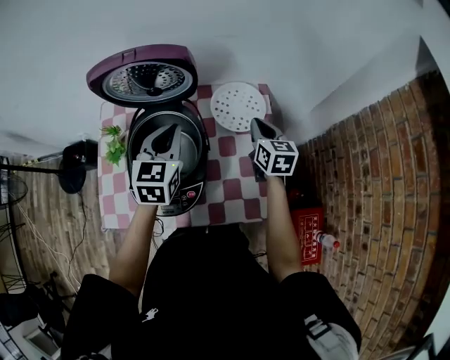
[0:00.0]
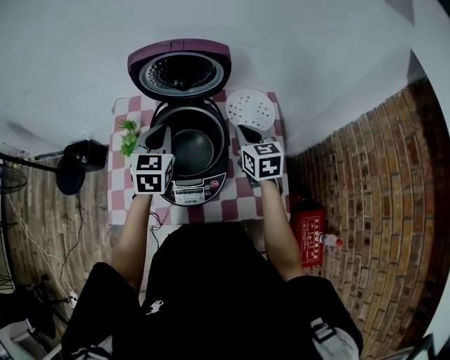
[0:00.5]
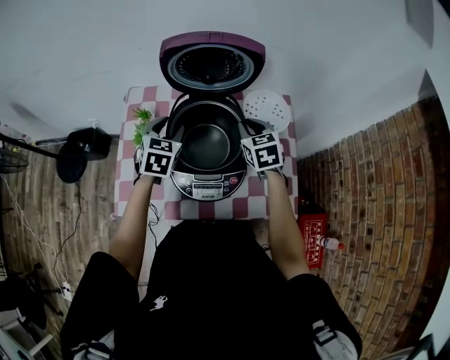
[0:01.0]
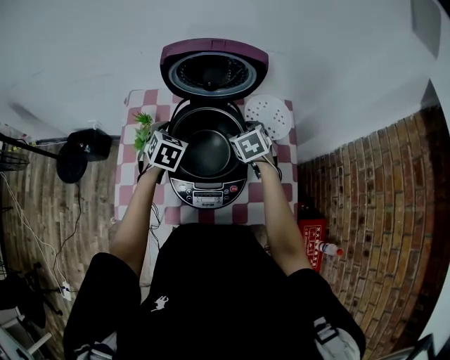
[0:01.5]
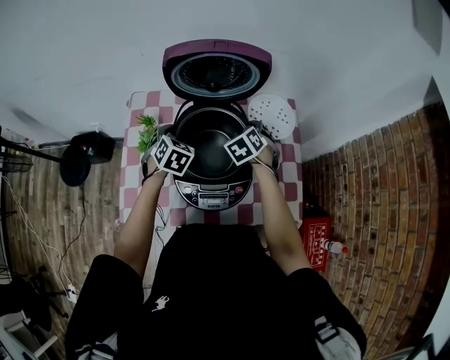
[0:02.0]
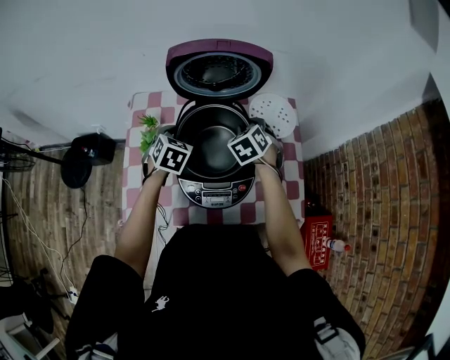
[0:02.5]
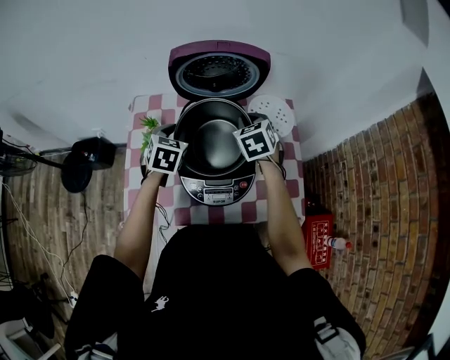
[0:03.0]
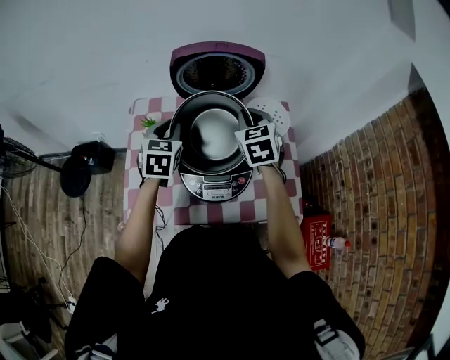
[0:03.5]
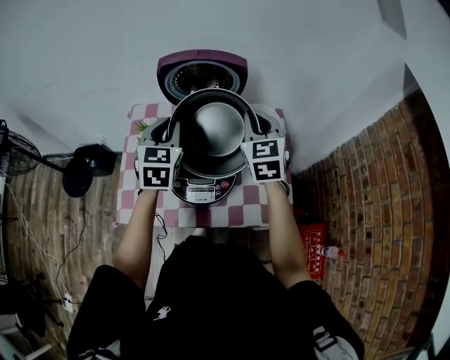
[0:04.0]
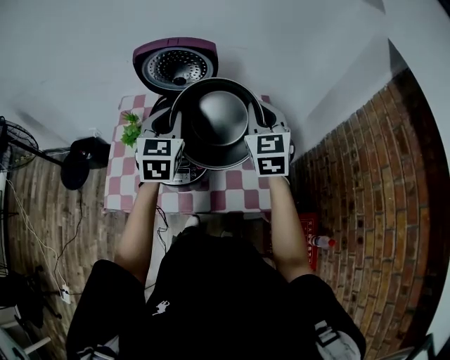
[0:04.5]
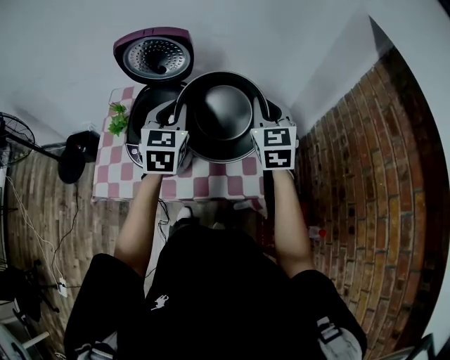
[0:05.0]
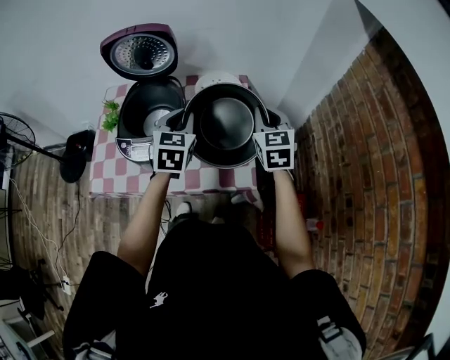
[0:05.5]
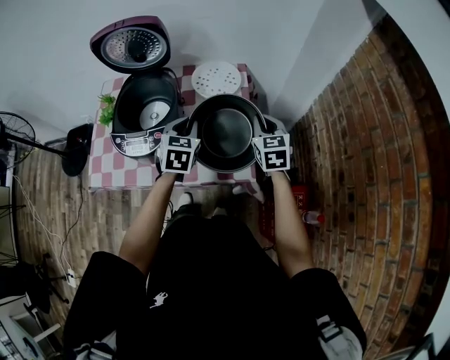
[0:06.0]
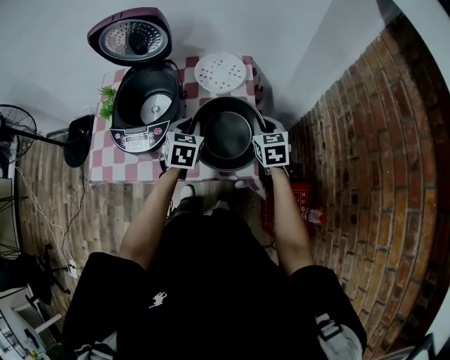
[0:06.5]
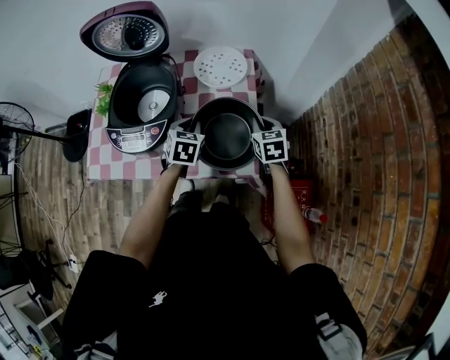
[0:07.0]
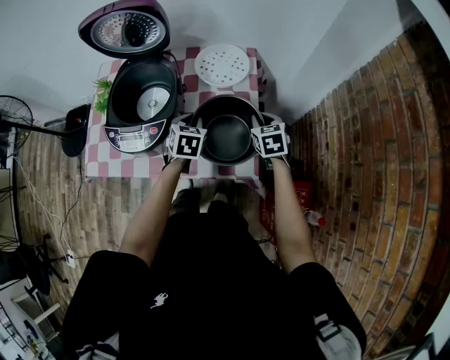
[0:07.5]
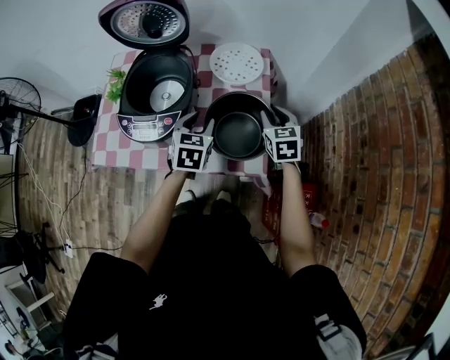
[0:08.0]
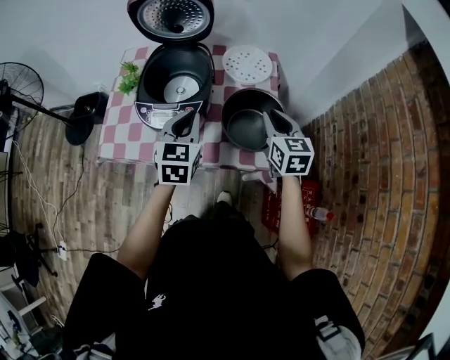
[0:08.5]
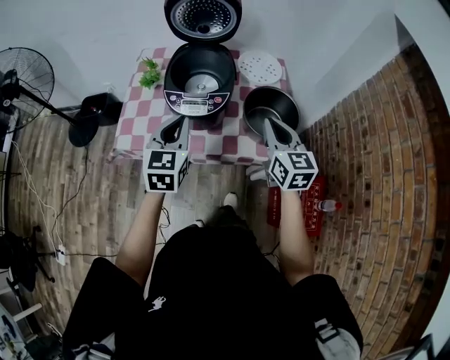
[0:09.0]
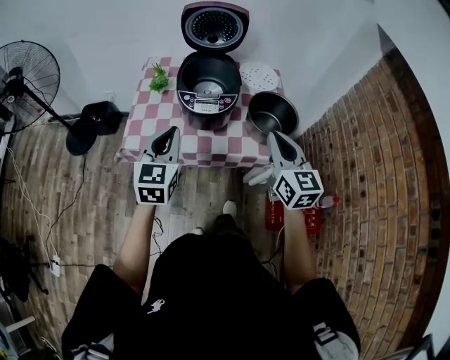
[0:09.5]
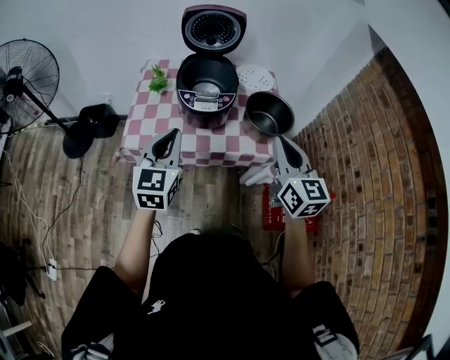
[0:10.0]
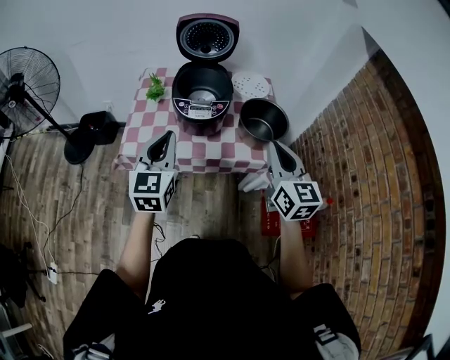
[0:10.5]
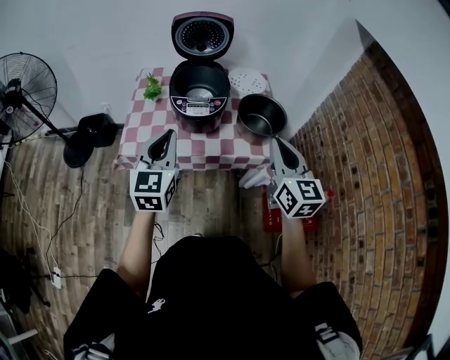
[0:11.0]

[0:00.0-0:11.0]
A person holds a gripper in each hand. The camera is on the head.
0:00.0 to 0:02.0: The right gripper moves to the left, some 20 cm, twists approximately 40 degrees counterclockwise, seen from behind, and opens, while the left gripper is displaced to the left and downward by roughly 20 cm, changes its angle by about 30 degrees, and opens up.
0:02.0 to 0:03.5: Both grippers travel together upward, some 15 cm. The right gripper turns by approximately 30 degrees, and closes its fingers, while the left gripper changes its angle by roughly 30 degrees, and closes its fingers.
0:03.5 to 0:05.5: The left gripper goes approximately 30 cm to the right; the right gripper is displaced to the right and backward by some 30 cm.
0:05.5 to 0:07.5: Both grippers travel together downward, approximately 20 cm. The right gripper swivels about 30 degrees; the left gripper rotates some 20 degrees.
0:07.5 to 0:09.0: The left gripper is displaced to the left, upward and backward by approximately 35 cm, rotates approximately 30 degrees, and opens, then closes once more, while the right gripper shifts roughly 30 cm upward, to the left and backward, and turns by approximately 30 degrees.
0:09.0 to 0:11.0: The left gripper is displaced backward, upward and to the left by approximately 15 cm; the right gripper shifts roughly 20 cm backward and upward.

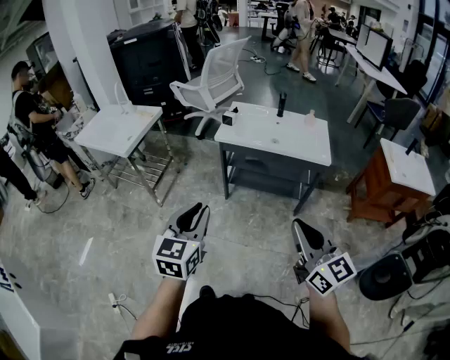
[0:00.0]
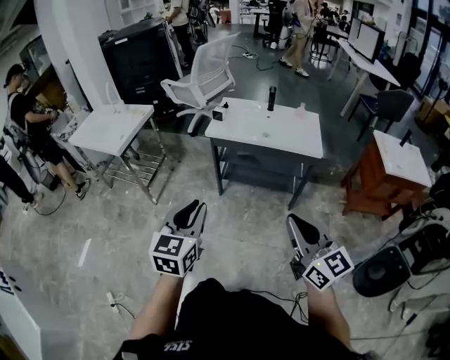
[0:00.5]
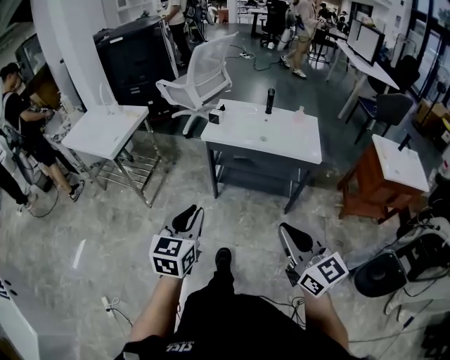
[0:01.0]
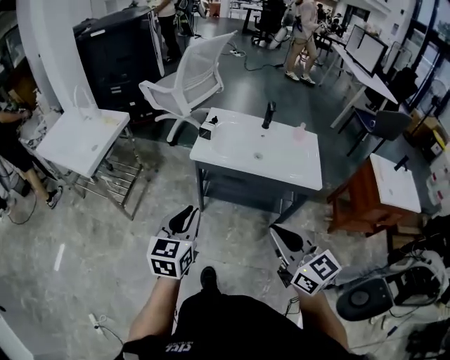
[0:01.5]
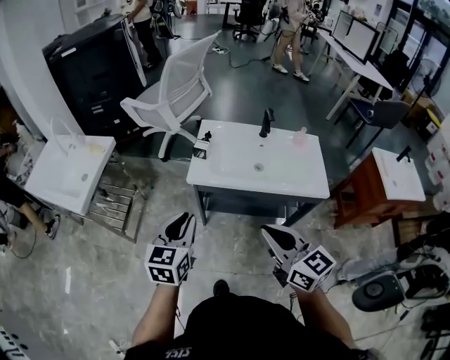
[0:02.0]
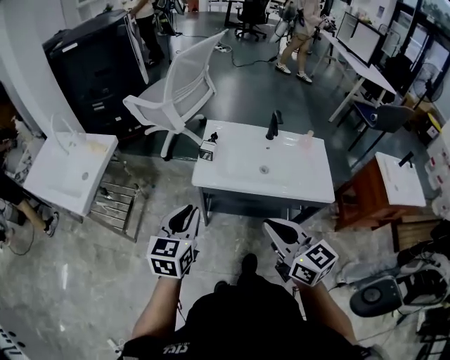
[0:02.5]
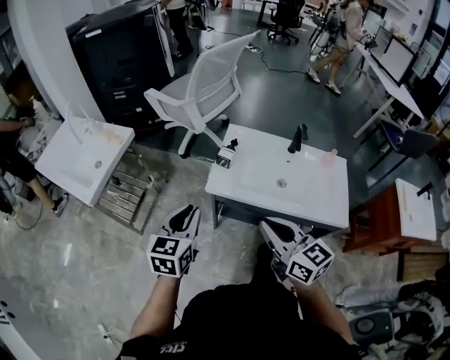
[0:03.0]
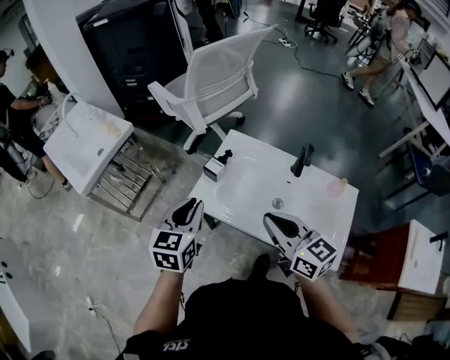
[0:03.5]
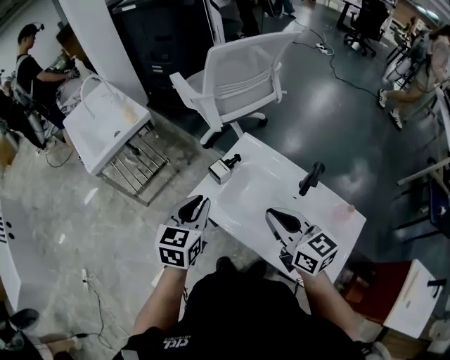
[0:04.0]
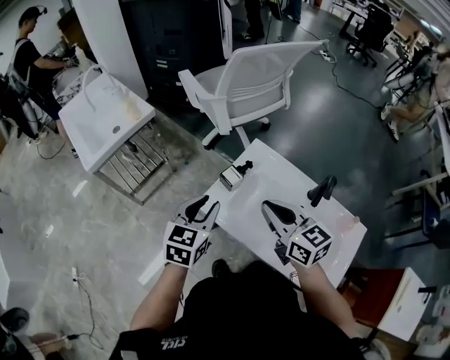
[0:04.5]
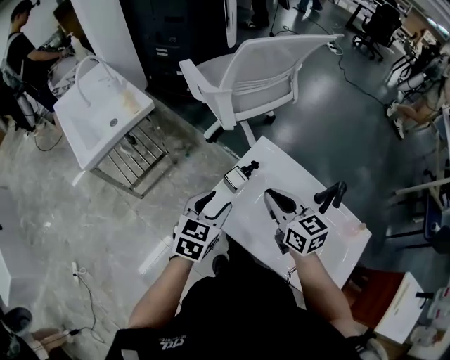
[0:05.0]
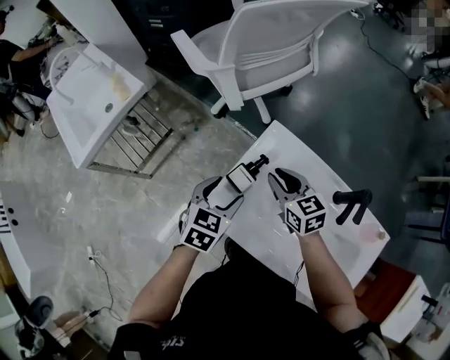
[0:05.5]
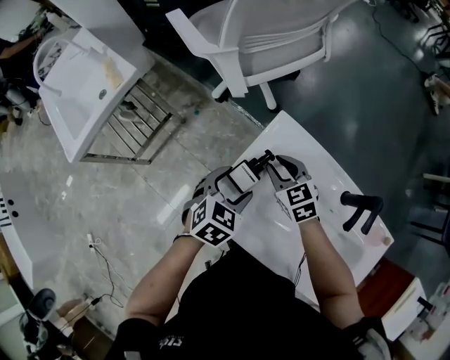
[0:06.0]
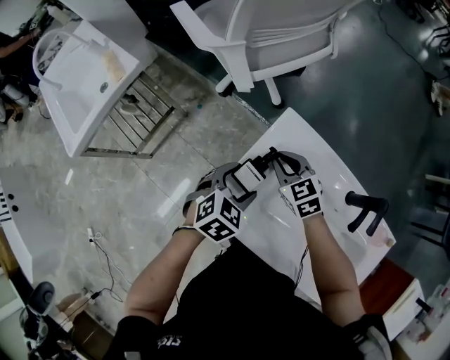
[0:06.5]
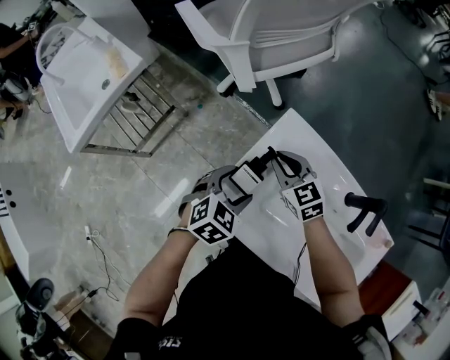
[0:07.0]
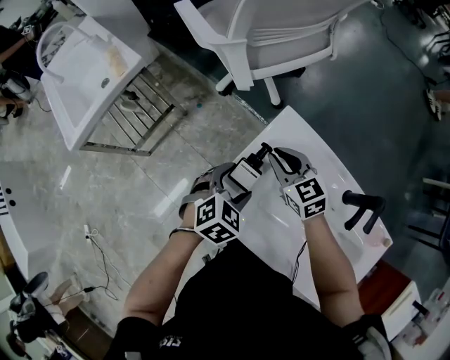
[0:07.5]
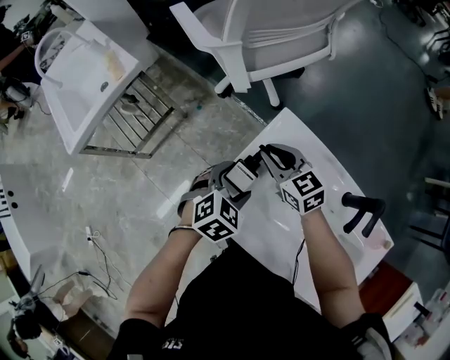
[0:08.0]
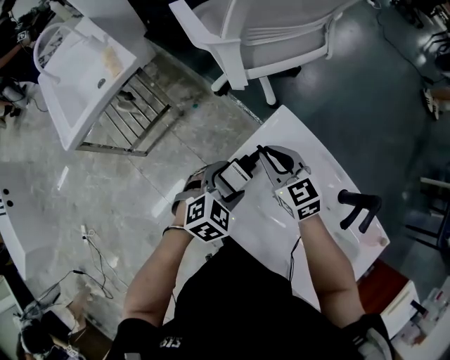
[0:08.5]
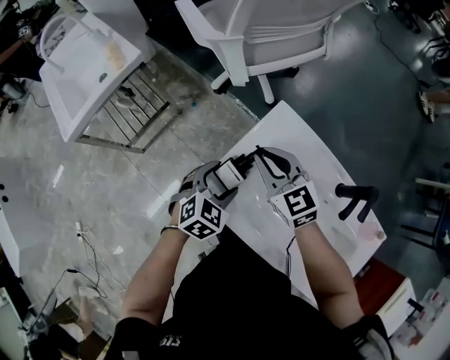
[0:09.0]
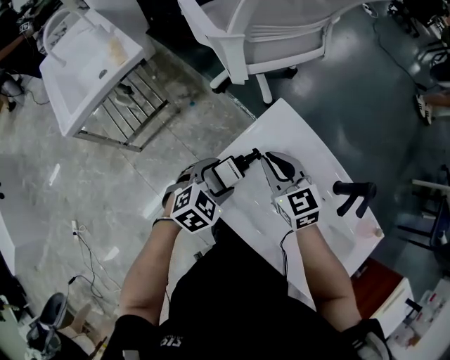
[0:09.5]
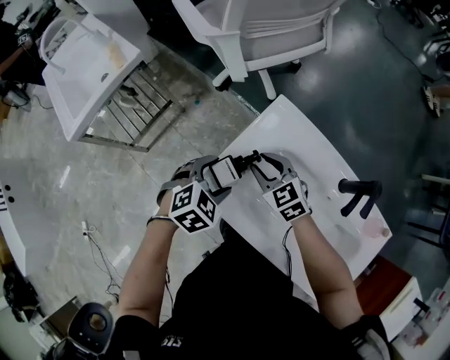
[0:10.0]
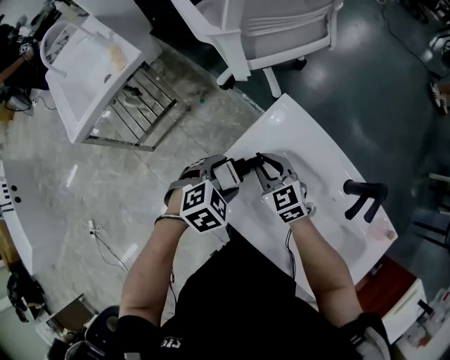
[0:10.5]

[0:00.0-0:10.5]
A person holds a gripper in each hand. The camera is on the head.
0:00.0 to 0:02.0: The two grippers go about 35 cm forward.
0:02.0 to 0:04.0: The left gripper moves about 30 cm, and swivels approximately 30 degrees. The right gripper changes place by some 40 cm, and swivels approximately 30 degrees.
0:04.0 to 0:06.5: The right gripper travels forward and downward by about 40 cm, and swivels approximately 30 degrees; the left gripper goes about 30 cm downward and forward, rotates roughly 40 degrees, and opens up.
0:06.5 to 0:08.5: The right gripper is displaced upward by some 5 cm.
0:08.5 to 0:10.5: The right gripper moves backward and downward, roughly 5 cm.

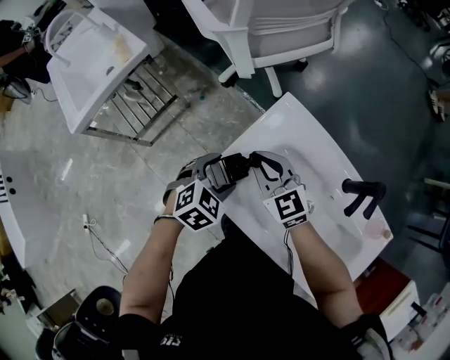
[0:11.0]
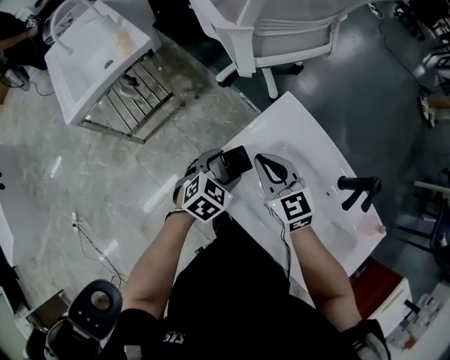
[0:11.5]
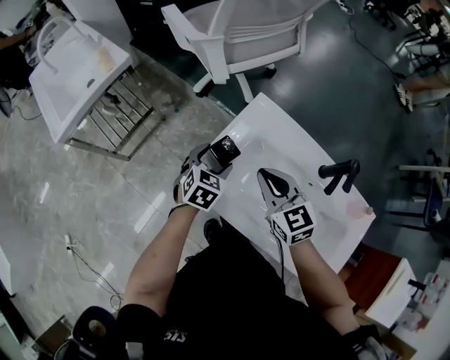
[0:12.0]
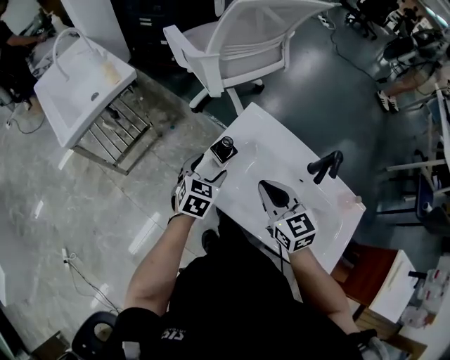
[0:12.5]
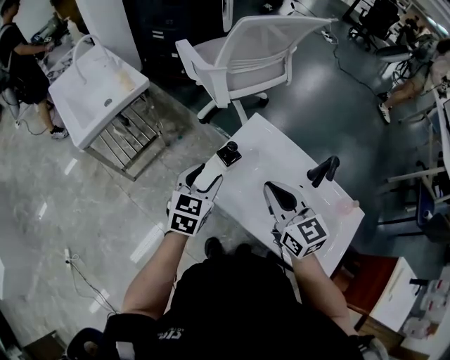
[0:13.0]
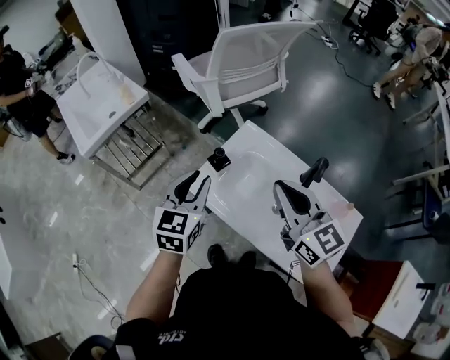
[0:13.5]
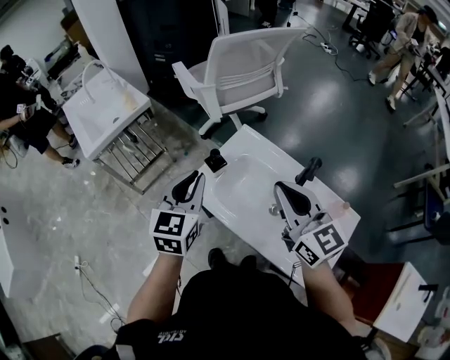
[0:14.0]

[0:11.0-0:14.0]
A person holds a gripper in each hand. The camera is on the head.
0:11.0 to 0:12.5: The right gripper heads backward, upward and to the right, covering about 15 cm. Meanwhile the left gripper changes its angle by approximately 30 degrees.
0:12.5 to 0:14.0: The right gripper travels upward, to the right and backward by approximately 20 cm, and changes its angle by approximately 20 degrees; the left gripper goes some 25 cm upward and backward, swivels roughly 20 degrees, and closes its fingers.

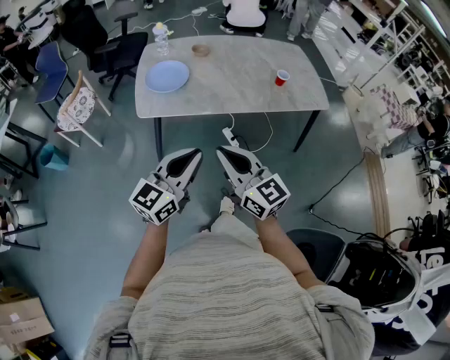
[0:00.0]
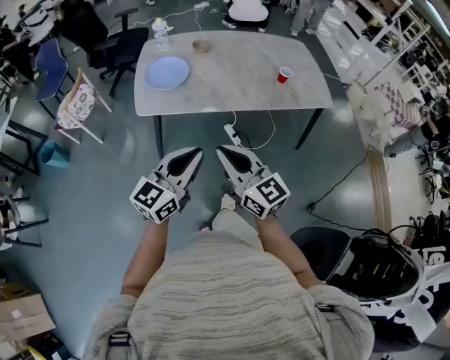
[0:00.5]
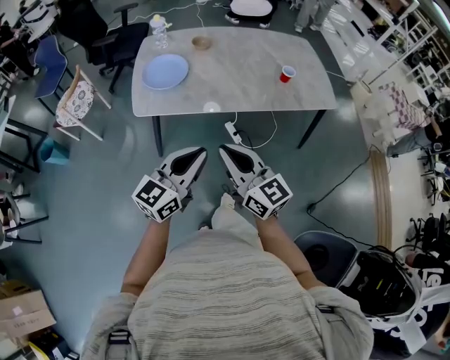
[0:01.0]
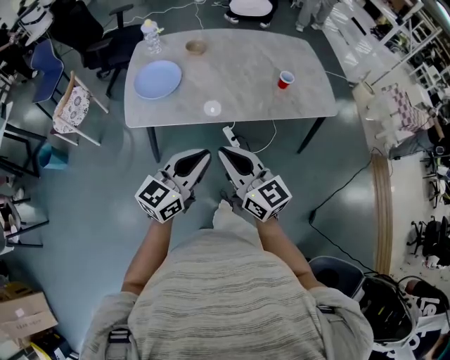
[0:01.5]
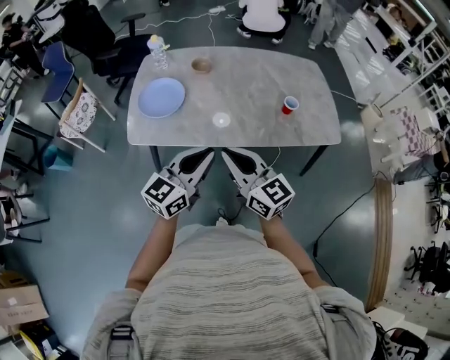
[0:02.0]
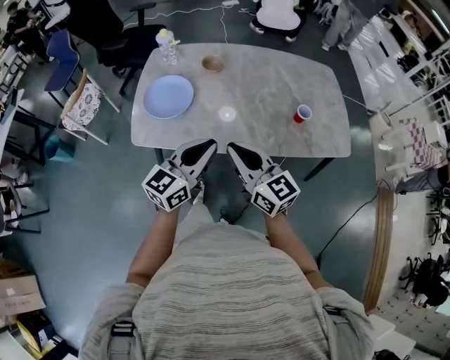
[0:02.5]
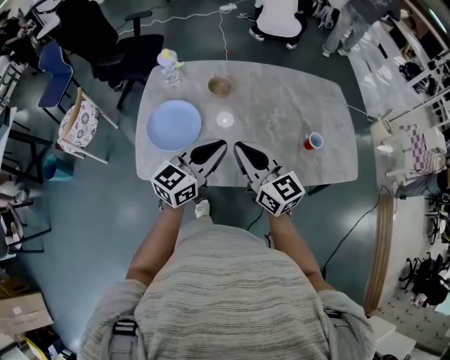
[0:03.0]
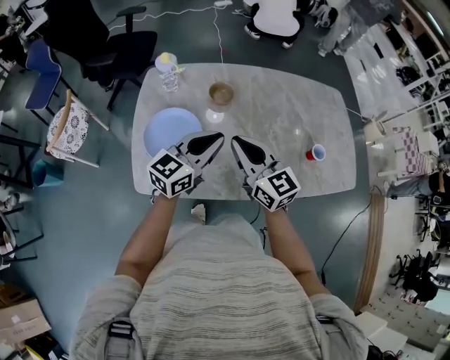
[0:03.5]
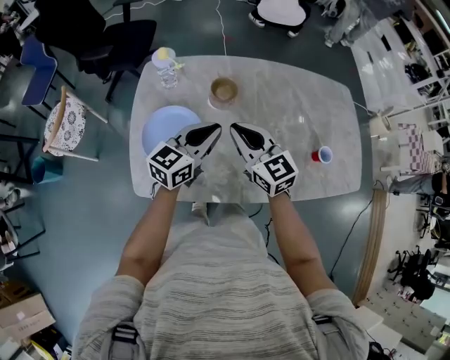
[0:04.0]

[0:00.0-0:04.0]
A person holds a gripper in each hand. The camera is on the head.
0:00.0 to 0:02.0: The two grippers go approximately 20 cm forward and to the right.
0:02.0 to 0:04.0: The grippers both shift forward by about 35 cm.
